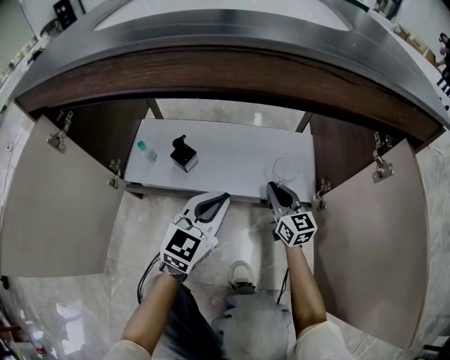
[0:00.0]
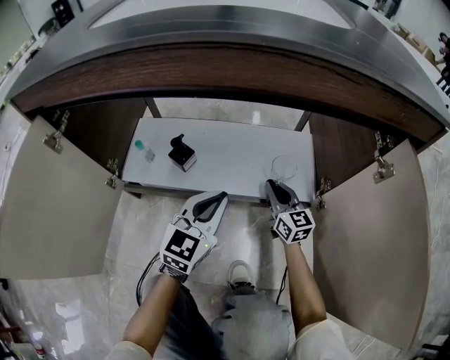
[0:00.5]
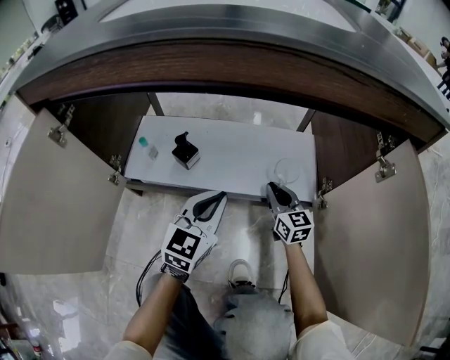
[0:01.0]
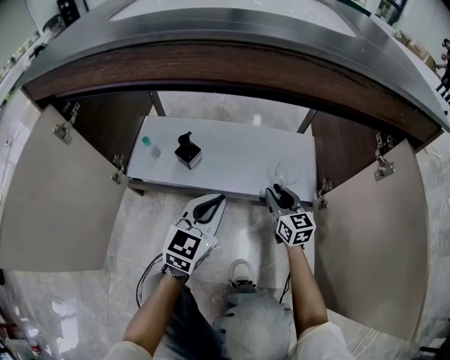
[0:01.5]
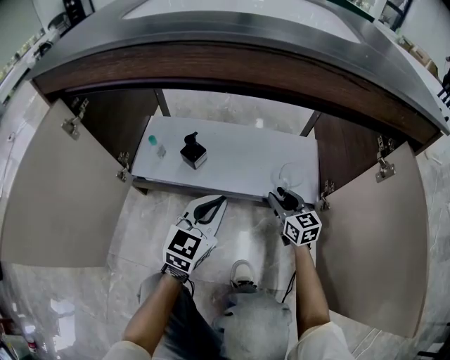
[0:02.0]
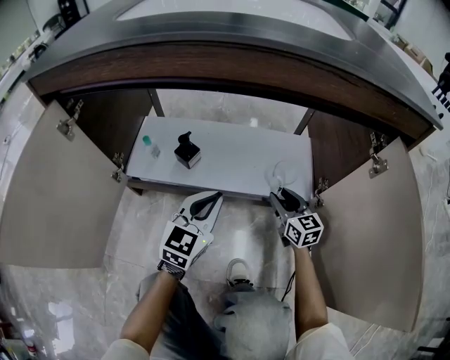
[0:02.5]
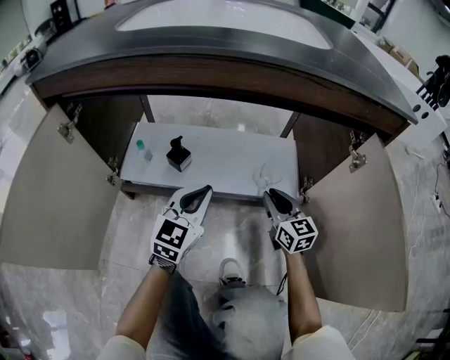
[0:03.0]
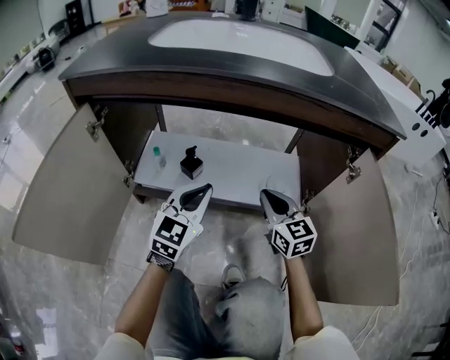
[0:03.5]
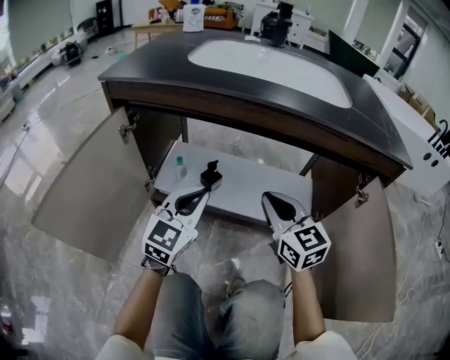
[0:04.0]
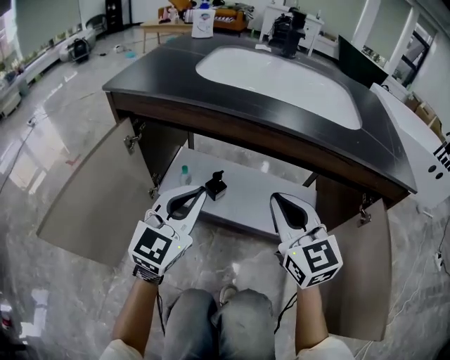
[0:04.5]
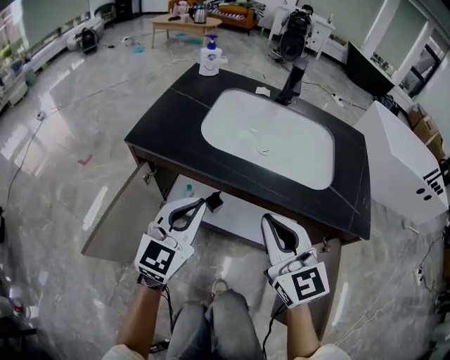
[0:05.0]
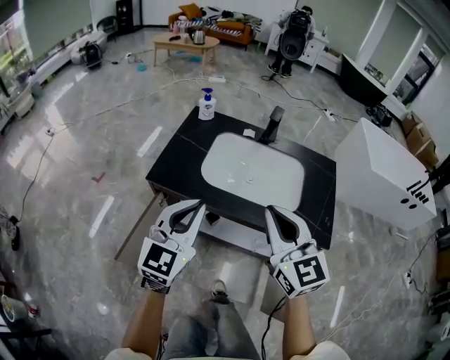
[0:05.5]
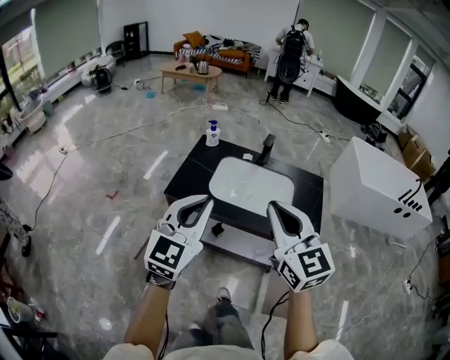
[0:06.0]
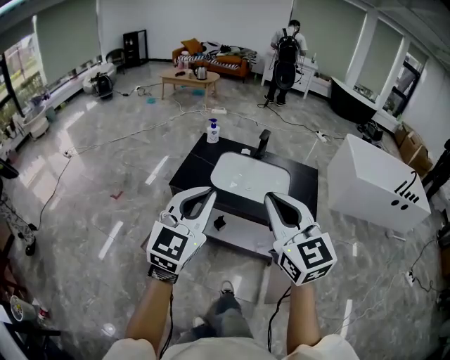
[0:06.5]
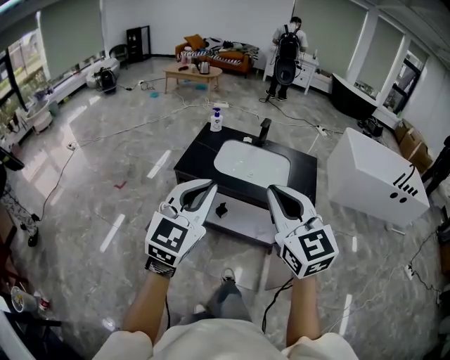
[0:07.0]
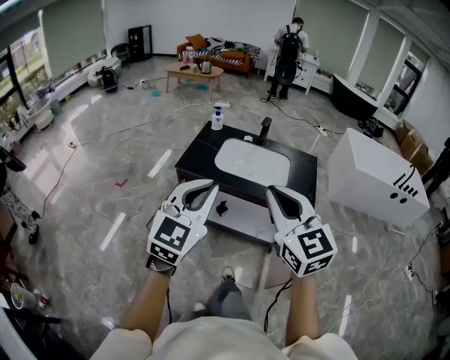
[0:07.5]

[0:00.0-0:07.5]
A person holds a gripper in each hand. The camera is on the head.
0:00.0 to 0:02.0: The right gripper opens up.
0:02.0 to 0:04.0: The right gripper goes roughly 30 cm upward and to the left, and closes up, while the left gripper shifts some 20 cm upward and to the left.
0:04.0 to 0:05.5: The grippers both shift upward by roughly 50 cm.
0:05.5 to 0:07.5: The two grippers go about 35 cm backward and upward.

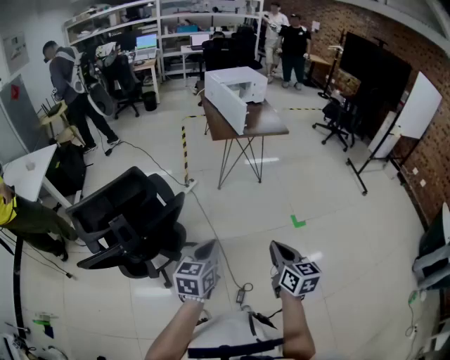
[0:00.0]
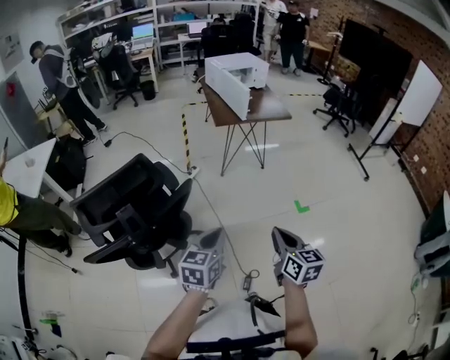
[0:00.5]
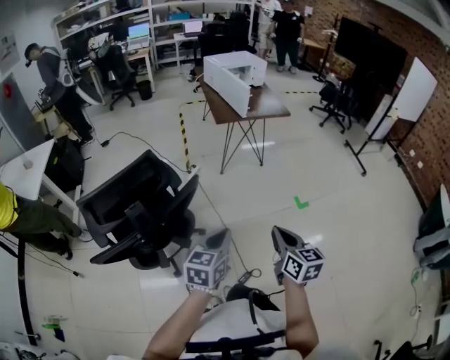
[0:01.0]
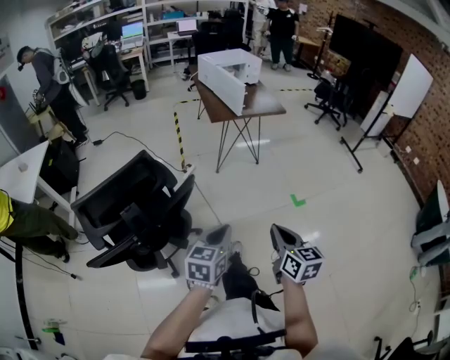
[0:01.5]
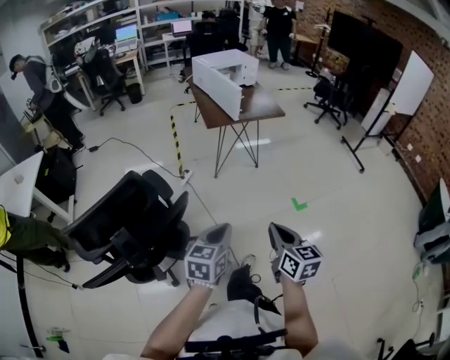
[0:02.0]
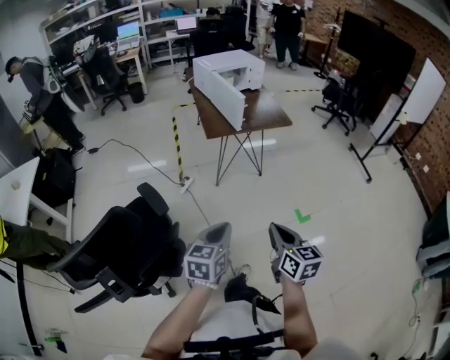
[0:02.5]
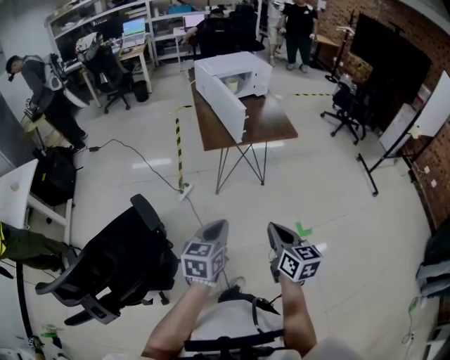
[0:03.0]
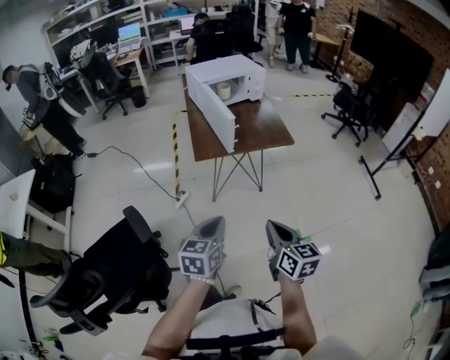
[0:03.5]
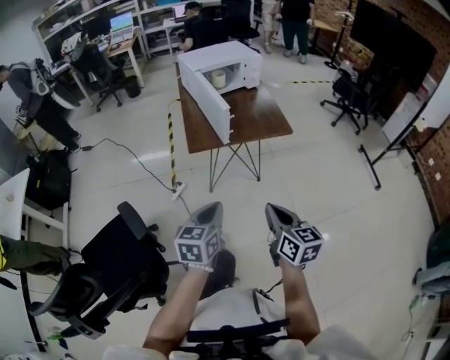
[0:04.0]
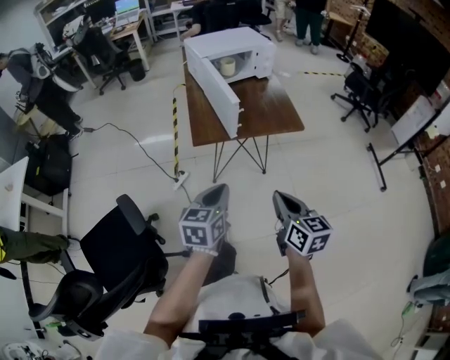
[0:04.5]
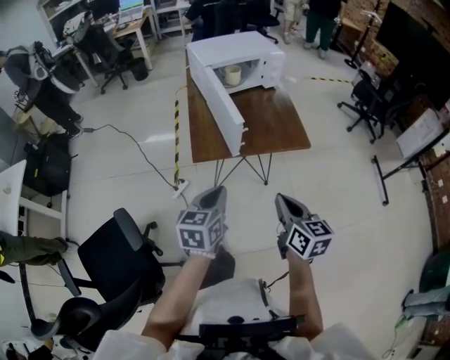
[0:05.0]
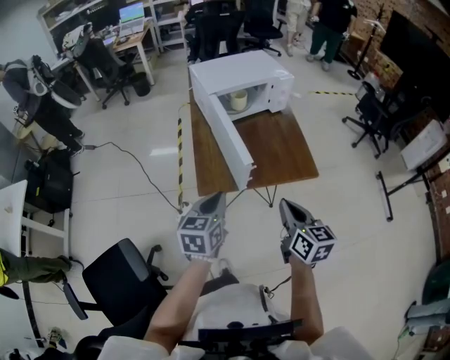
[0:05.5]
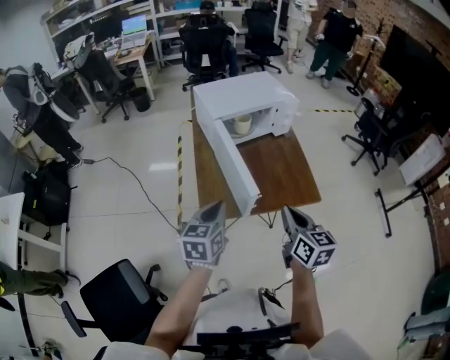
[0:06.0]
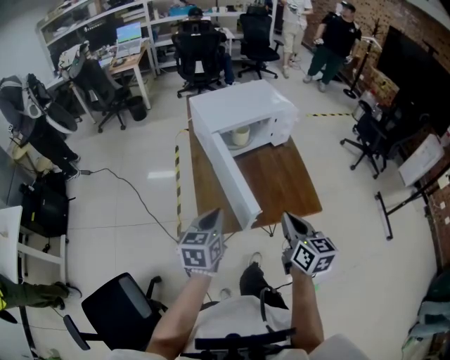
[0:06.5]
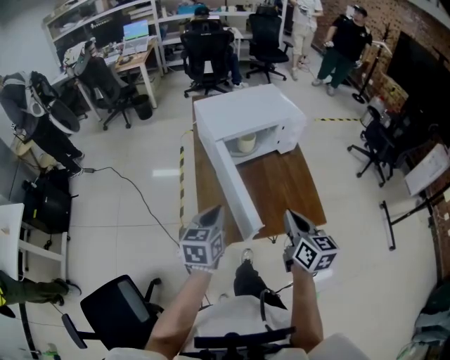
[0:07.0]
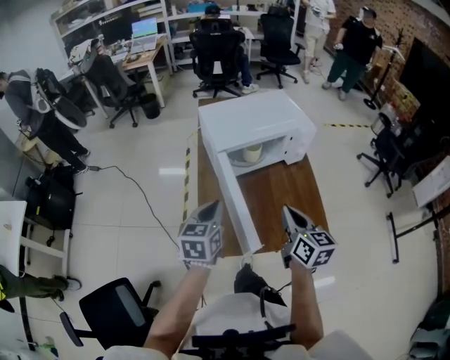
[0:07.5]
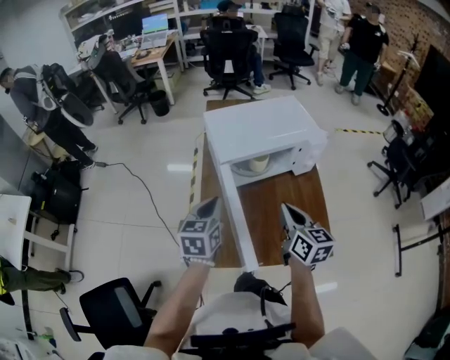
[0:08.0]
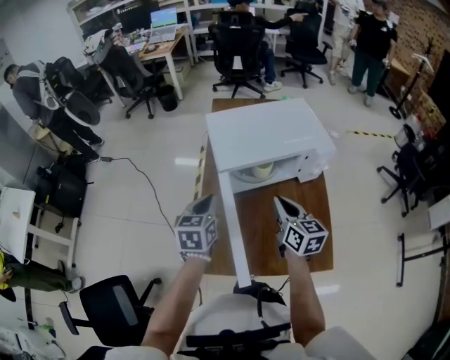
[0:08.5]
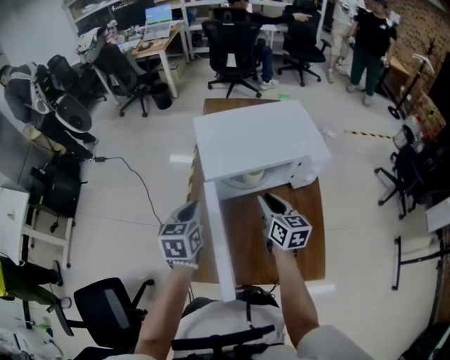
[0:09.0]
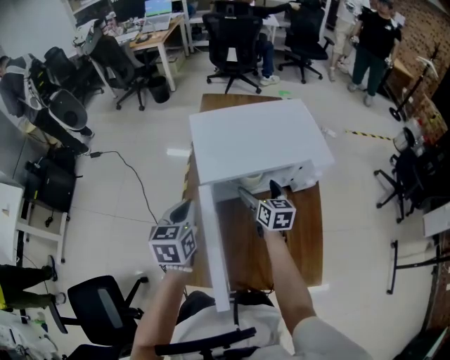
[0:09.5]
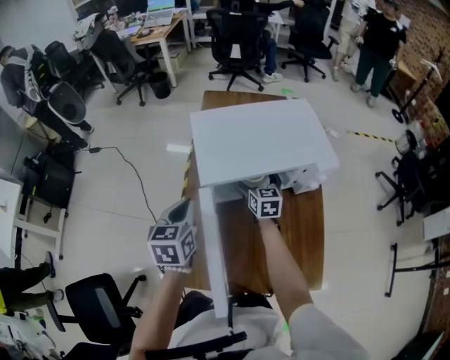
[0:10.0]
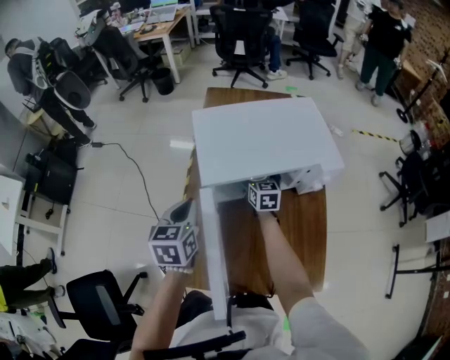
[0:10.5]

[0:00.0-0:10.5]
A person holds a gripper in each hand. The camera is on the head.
0:00.0 to 0:02.0: The left gripper is displaced forward by some 5 cm. The right gripper shifts about 10 cm to the left and forward.
0:02.0 to 0:04.0: Both grippers travel together forward, roughly 35 cm.
0:04.0 to 0:06.5: Both grippers travel together forward, about 40 cm.
0:06.5 to 0:08.5: Both grippers travel together forward, approximately 25 cm.
0:08.5 to 0:10.5: The right gripper shifts some 30 cm forward and downward, and opens up.

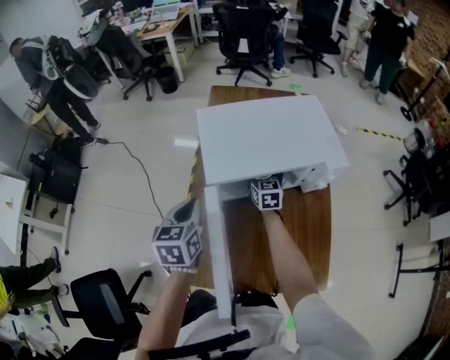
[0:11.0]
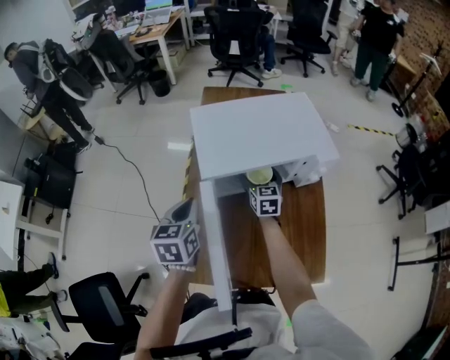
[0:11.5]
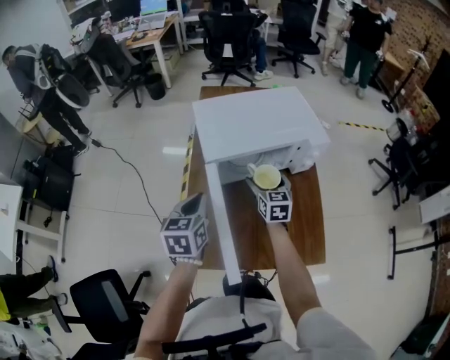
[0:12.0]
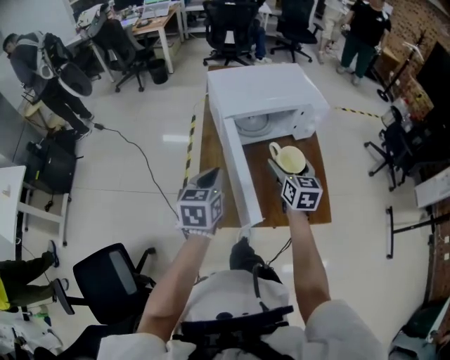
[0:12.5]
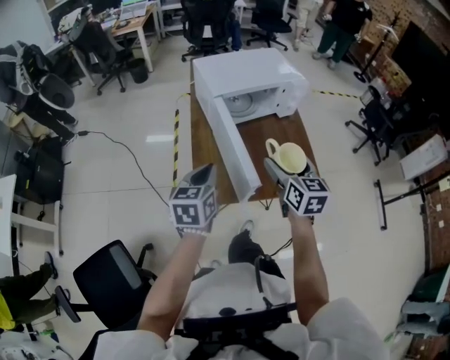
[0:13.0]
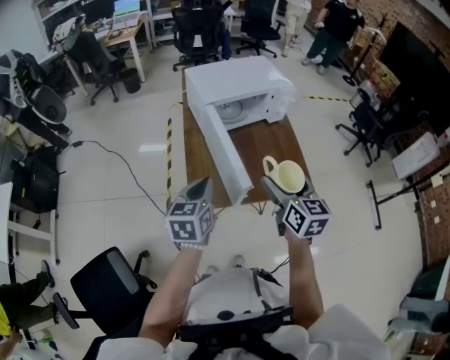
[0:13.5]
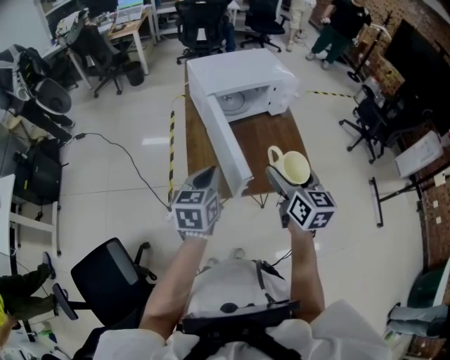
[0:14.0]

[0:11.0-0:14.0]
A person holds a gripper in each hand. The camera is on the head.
0:11.0 to 0:12.5: The left gripper travels backward by roughly 15 cm. The right gripper moves backward and upward, about 30 cm.
0:12.5 to 0:14.0: The left gripper goes about 10 cm backward, while the right gripper moves backward and upward, some 20 cm.

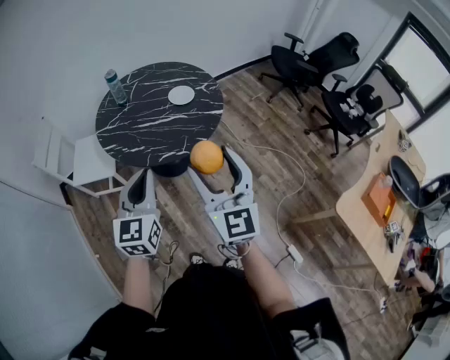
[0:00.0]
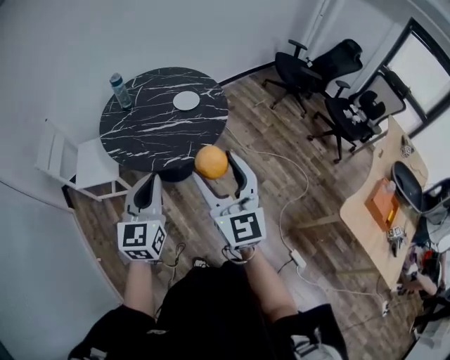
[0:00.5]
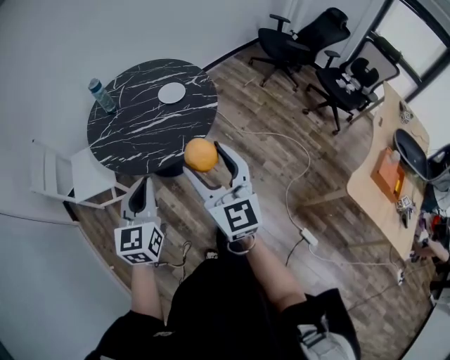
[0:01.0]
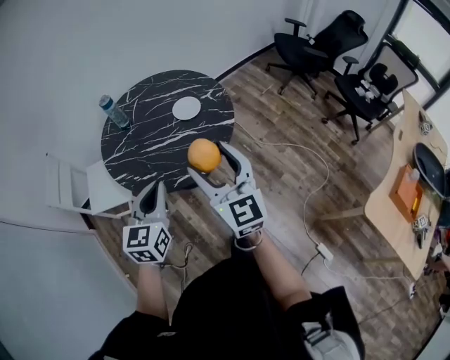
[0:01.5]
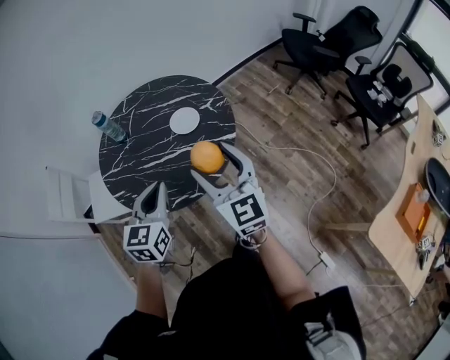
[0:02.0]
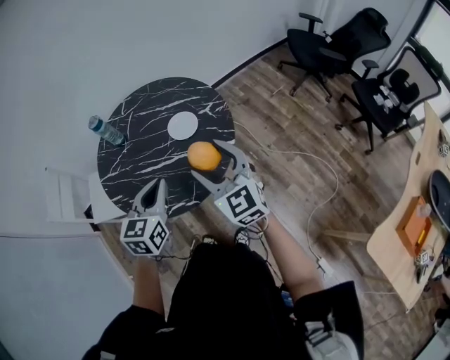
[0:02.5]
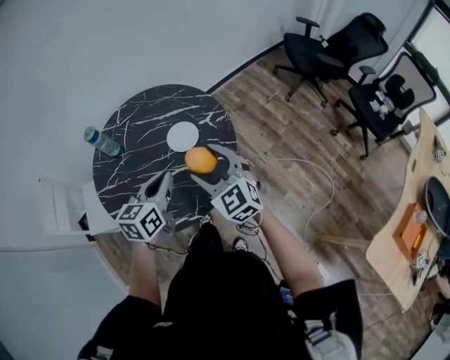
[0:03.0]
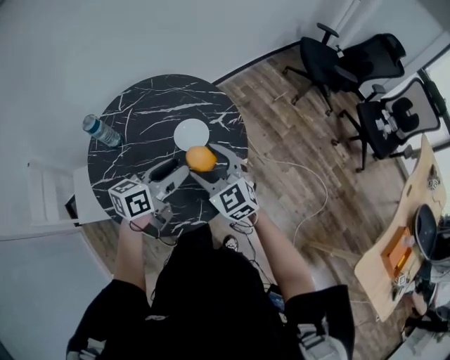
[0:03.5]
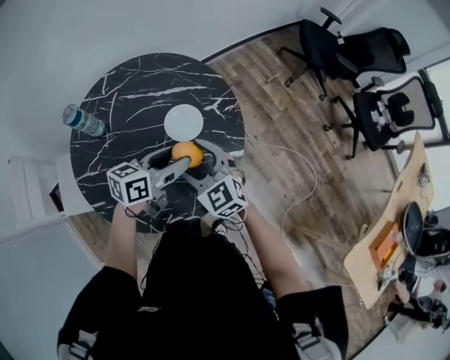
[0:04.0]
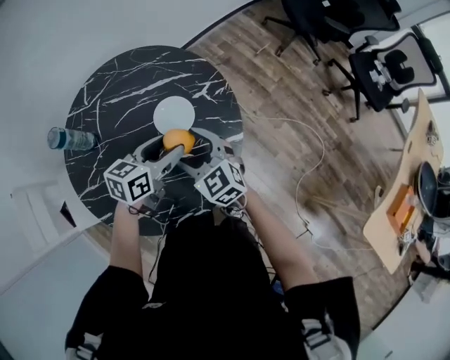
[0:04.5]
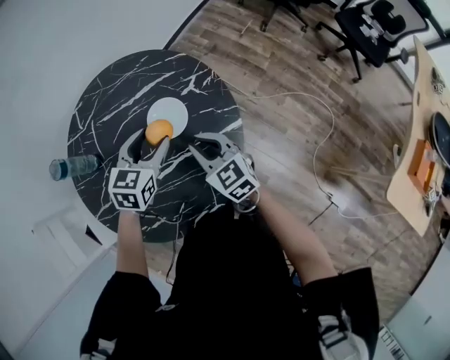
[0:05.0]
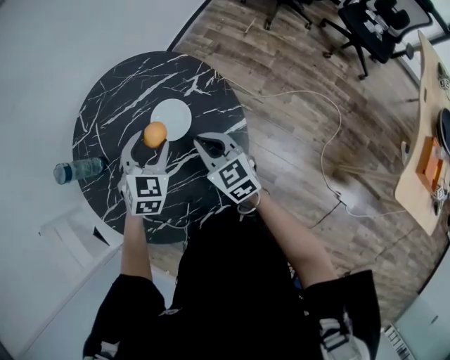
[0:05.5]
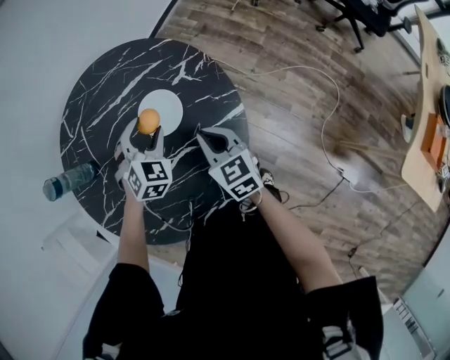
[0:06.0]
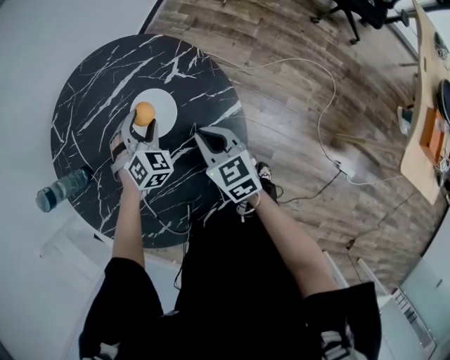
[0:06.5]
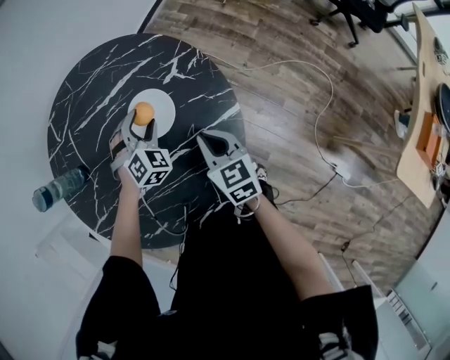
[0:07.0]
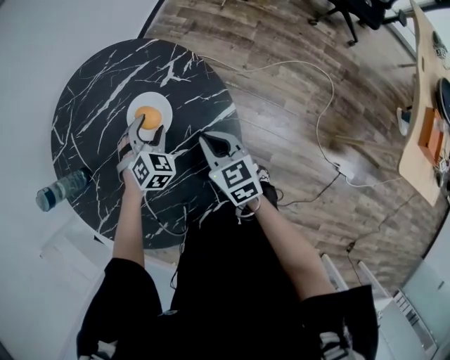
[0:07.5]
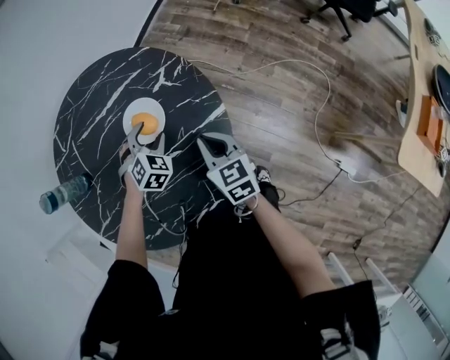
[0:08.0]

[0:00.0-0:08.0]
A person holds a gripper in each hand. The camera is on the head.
0:00.0 to 0:02.0: The grippers both shift forward by roughly 25 cm.
0:02.0 to 0:04.0: The left gripper travels forward and downward by approximately 30 cm, swivels some 50 degrees, and opens up. Meanwhile the right gripper is displaced forward, downward and to the left by about 30 cm, and changes its angle by about 30 degrees.
0:04.0 to 0:06.0: The left gripper goes approximately 15 cm downward and forward, and rolls clockwise, seen from behind, by approximately 70 degrees; the right gripper moves downward and to the right, about 15 cm, rotates about 40 degrees, and closes up.
0:06.0 to 0:08.0: The left gripper shifts some 10 cm downward. Meanwhile the right gripper changes place by approximately 5 cm.
